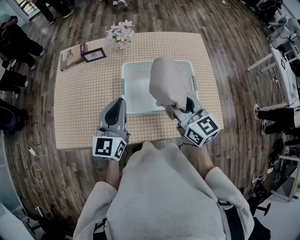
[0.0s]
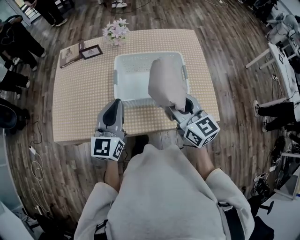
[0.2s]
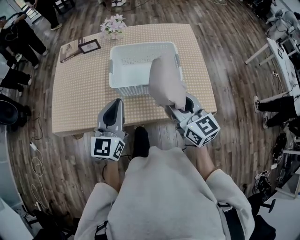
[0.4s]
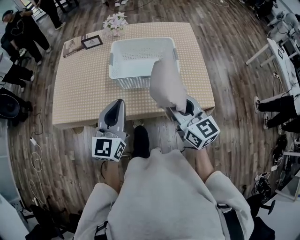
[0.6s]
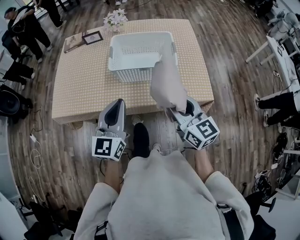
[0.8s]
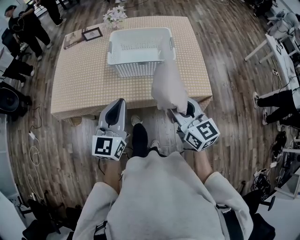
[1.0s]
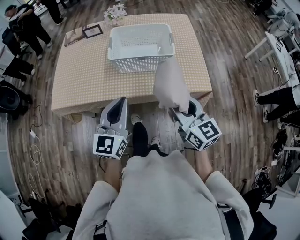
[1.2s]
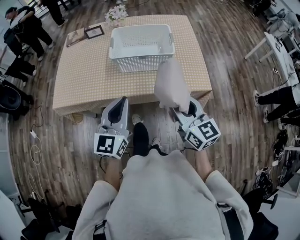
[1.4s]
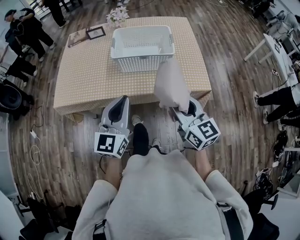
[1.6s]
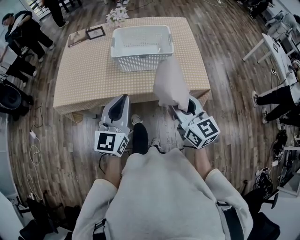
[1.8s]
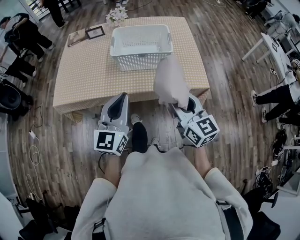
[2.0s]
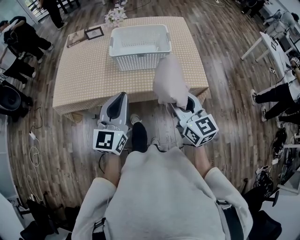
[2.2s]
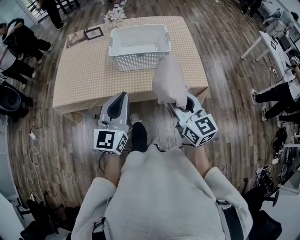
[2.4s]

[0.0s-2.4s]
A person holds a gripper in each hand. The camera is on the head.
0.0s to 1.2s: The two grippers go about 30 cm backward.
1.2s to 2.4s: The grippers stay close to where they were, moving slightly.

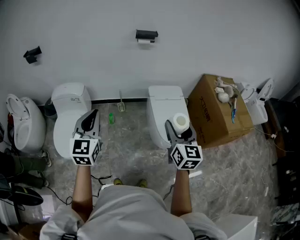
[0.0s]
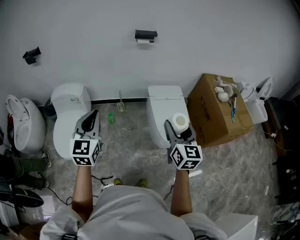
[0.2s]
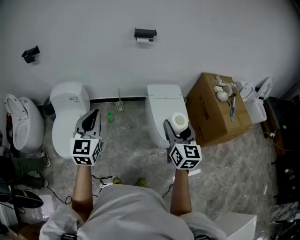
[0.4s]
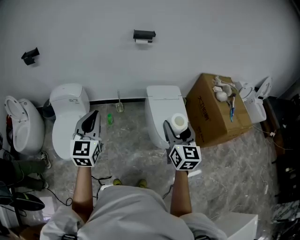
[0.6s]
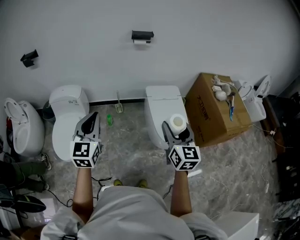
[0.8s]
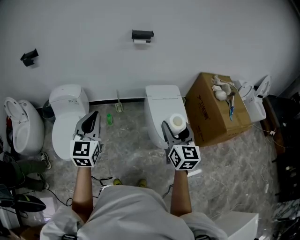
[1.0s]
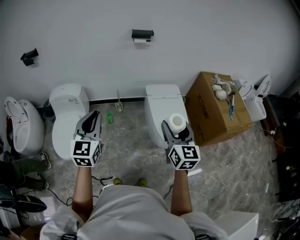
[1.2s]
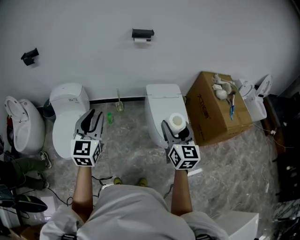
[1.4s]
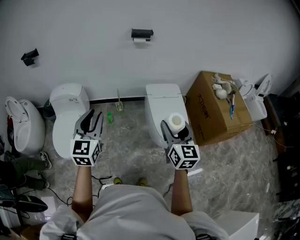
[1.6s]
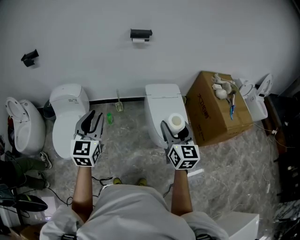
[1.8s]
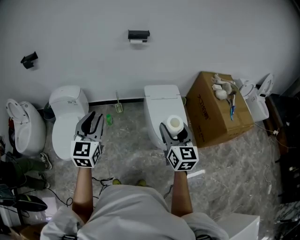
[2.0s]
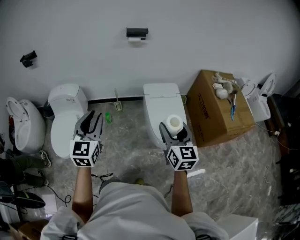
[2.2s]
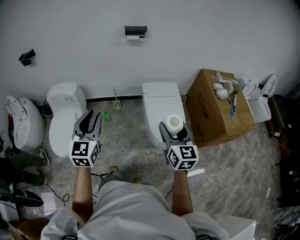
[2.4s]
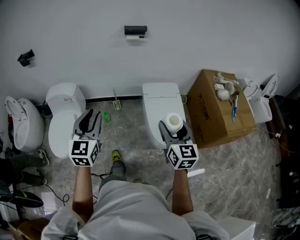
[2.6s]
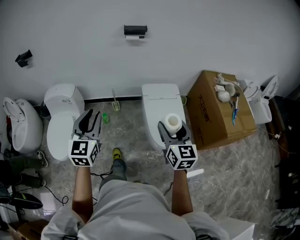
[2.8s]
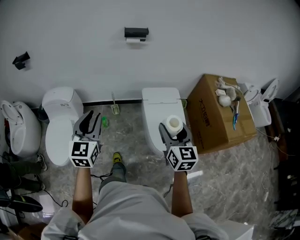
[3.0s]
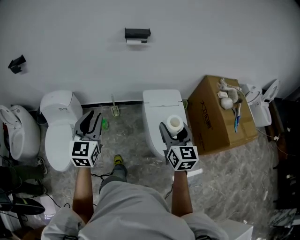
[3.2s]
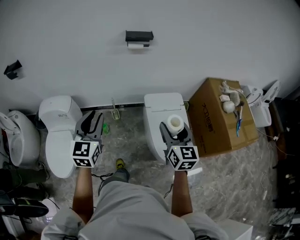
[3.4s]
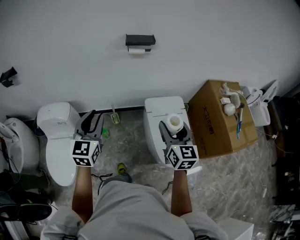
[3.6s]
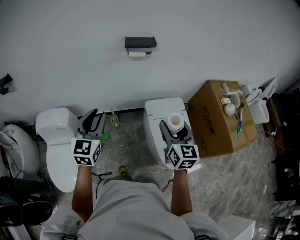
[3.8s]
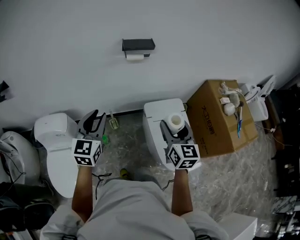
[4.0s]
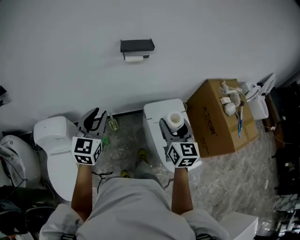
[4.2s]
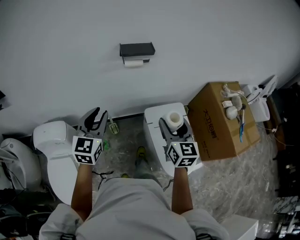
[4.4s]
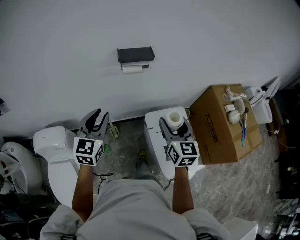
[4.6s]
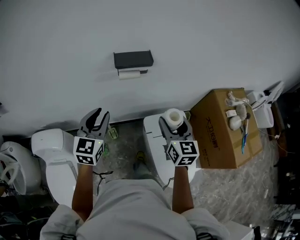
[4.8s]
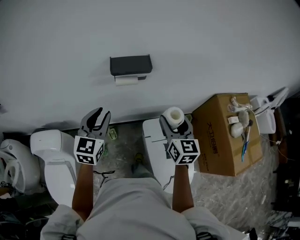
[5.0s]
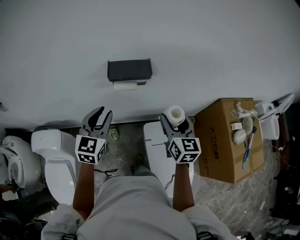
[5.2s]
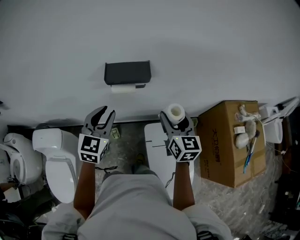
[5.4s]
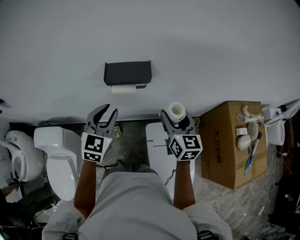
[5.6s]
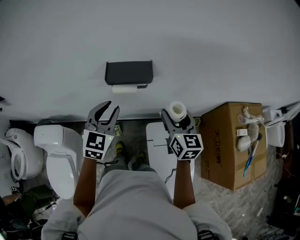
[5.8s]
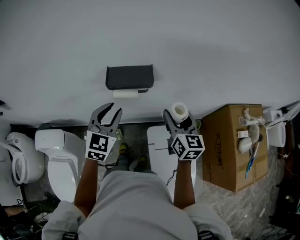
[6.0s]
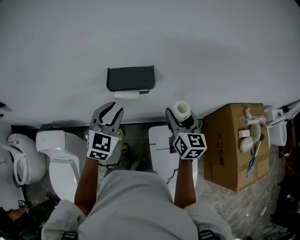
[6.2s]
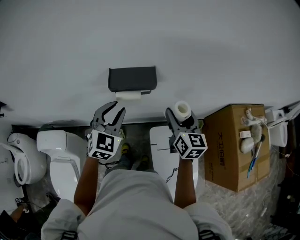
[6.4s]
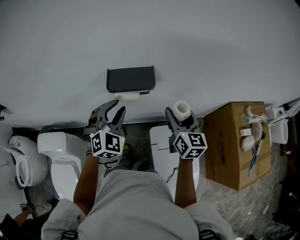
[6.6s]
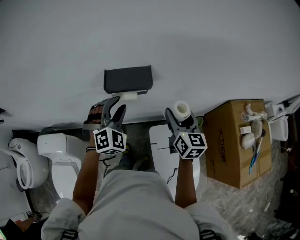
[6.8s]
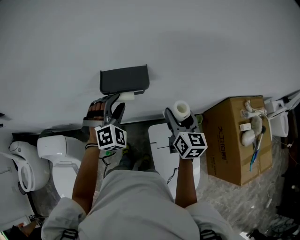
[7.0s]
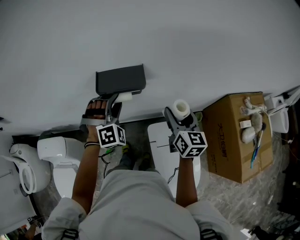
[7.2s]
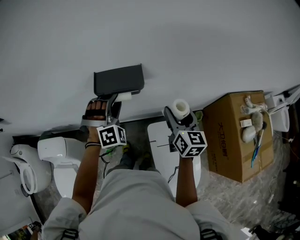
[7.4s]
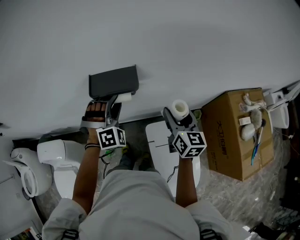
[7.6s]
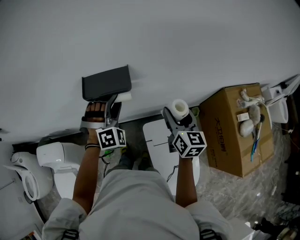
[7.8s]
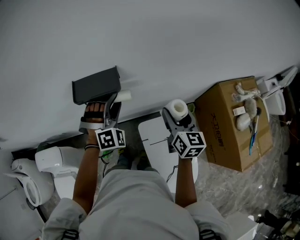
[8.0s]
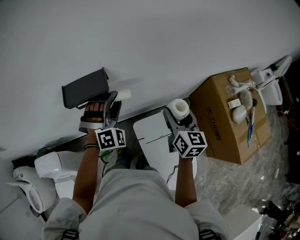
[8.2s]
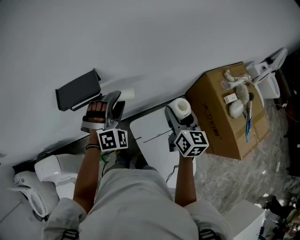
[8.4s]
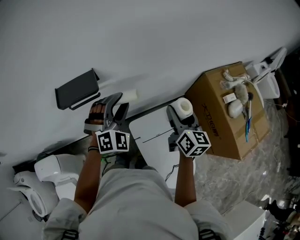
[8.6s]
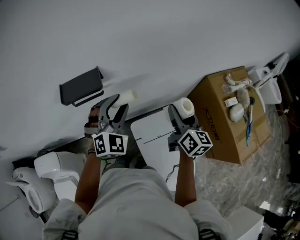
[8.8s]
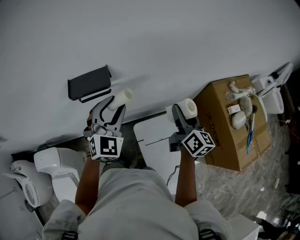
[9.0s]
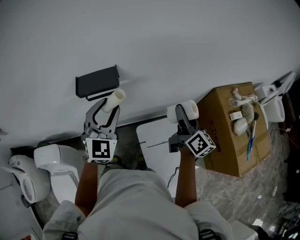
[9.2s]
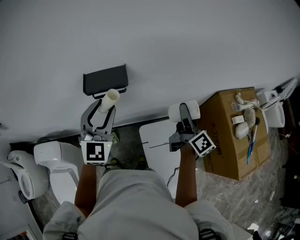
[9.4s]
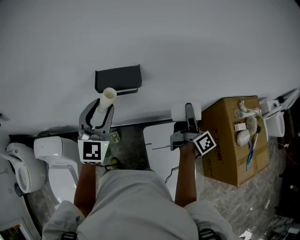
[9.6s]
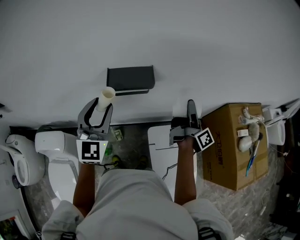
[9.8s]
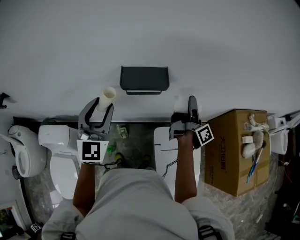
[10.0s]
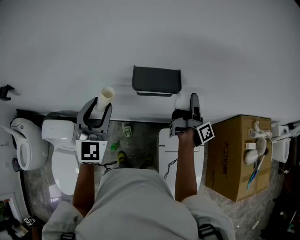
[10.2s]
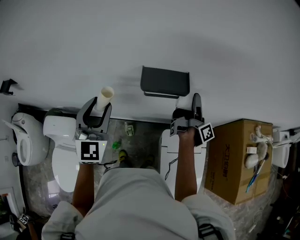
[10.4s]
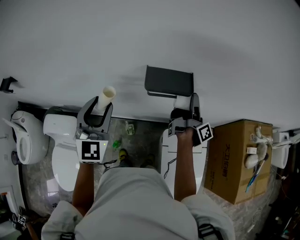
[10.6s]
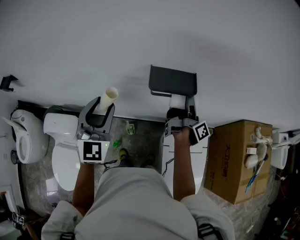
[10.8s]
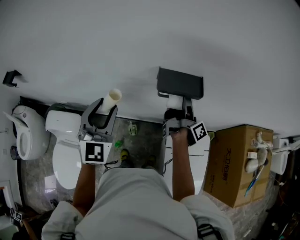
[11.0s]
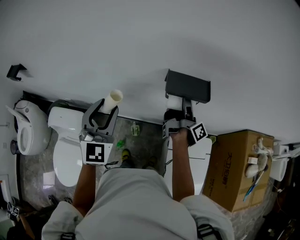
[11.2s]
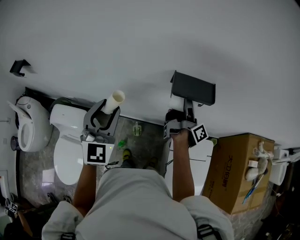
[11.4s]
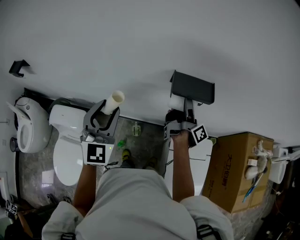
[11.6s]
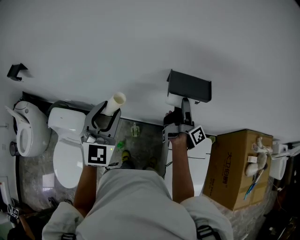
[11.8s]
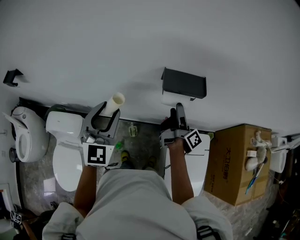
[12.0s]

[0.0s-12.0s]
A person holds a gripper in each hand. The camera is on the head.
0.0s to 1.6s: The left gripper opens up.
1.6s to 3.0s: The right gripper heads forward, to the right and downward, covering about 15 cm. The left gripper goes about 15 cm forward and to the right.
3.0s to 4.4s: Both grippers move forward, some 35 cm.
4.4s to 6.0s: The left gripper goes approximately 25 cm forward and to the right. Meanwhile the right gripper is displaced forward by approximately 30 cm.
6.0s to 7.6s: The right gripper ends up some 5 cm from where it was, while the left gripper heads forward and to the right, covering about 10 cm, and rolls clockwise, seen from behind, by approximately 60 degrees.
7.6s to 9.0s: The right gripper goes about 15 cm to the right, and changes its angle by approximately 20 degrees. Meanwhile the left gripper travels to the right and upward by approximately 15 cm, and changes its angle by about 40 degrees.
9.0s to 10.4s: The left gripper is displaced to the left by roughly 30 cm, and changes its angle by some 40 degrees. Meanwhile the right gripper shifts about 25 cm to the left and forward, and twists roughly 60 degrees clockwise, seen from behind.
10.4s to 12.0s: The right gripper is displaced to the left and backward by about 15 cm; the left gripper changes place by approximately 5 cm.

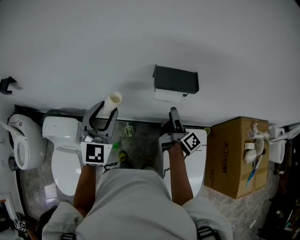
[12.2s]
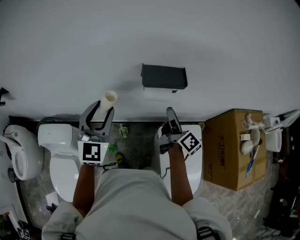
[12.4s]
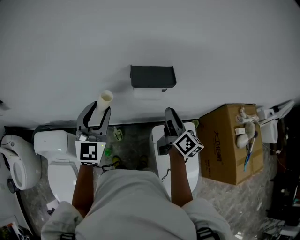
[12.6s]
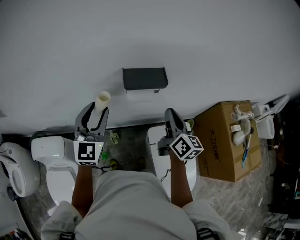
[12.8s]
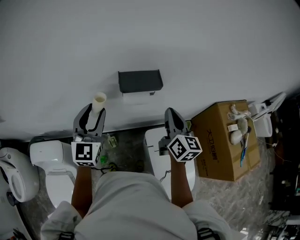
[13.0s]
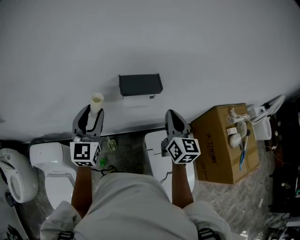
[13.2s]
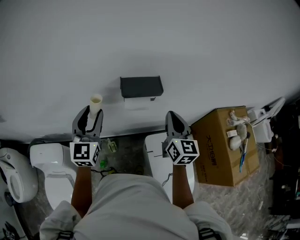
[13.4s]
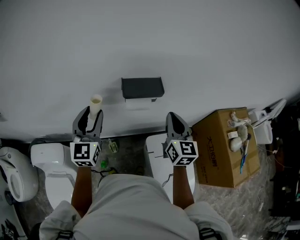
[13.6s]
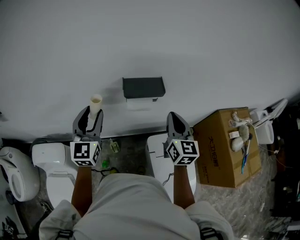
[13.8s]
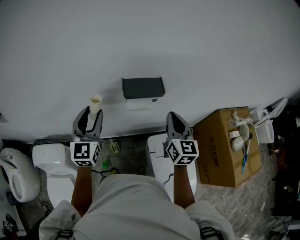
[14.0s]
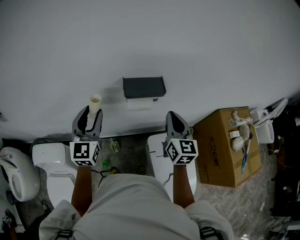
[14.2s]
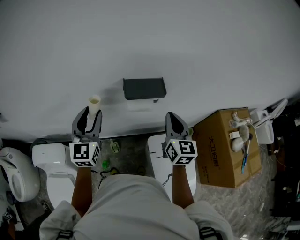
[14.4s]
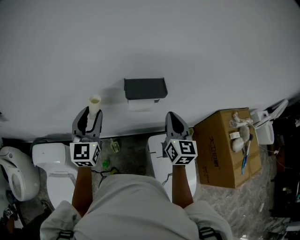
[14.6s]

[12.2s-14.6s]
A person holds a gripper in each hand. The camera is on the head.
12.2s to 13.4s: The left gripper changes place by roughly 5 cm, and turns by about 20 degrees. Meanwhile the right gripper heads upward and to the right, covering about 15 cm, rolls counterclockwise, seen from behind, by approximately 70 degrees, and closes.
13.4s to 14.6s: The two grippers keep their place.

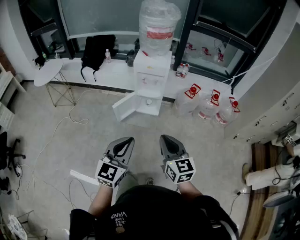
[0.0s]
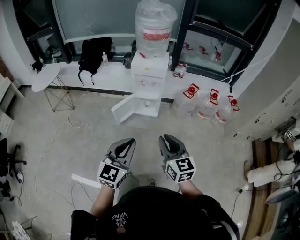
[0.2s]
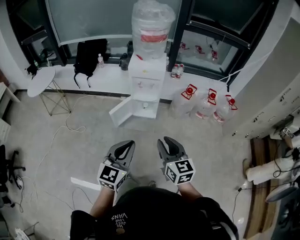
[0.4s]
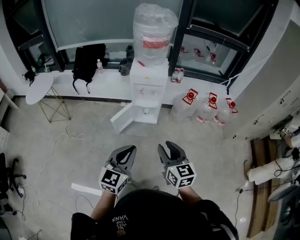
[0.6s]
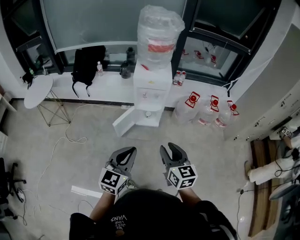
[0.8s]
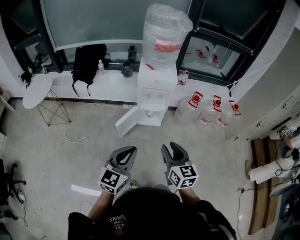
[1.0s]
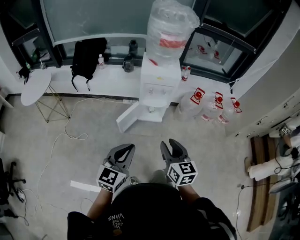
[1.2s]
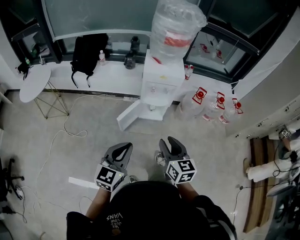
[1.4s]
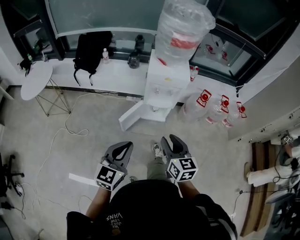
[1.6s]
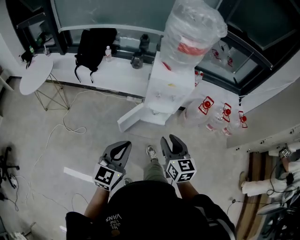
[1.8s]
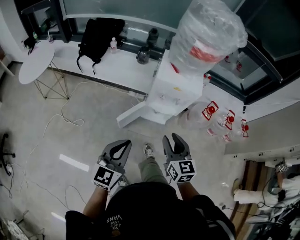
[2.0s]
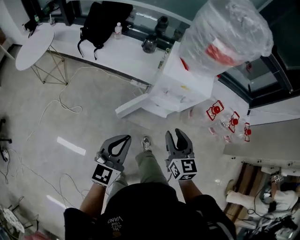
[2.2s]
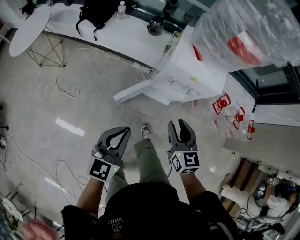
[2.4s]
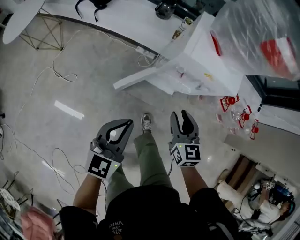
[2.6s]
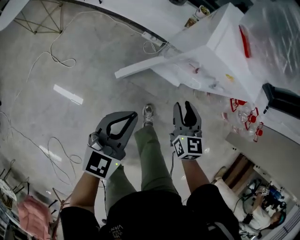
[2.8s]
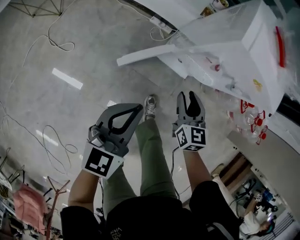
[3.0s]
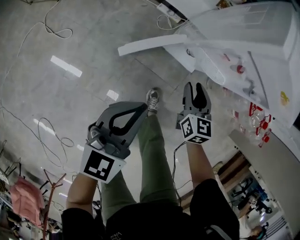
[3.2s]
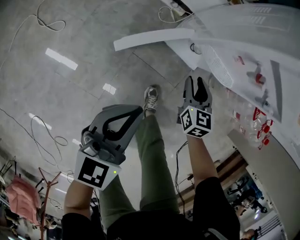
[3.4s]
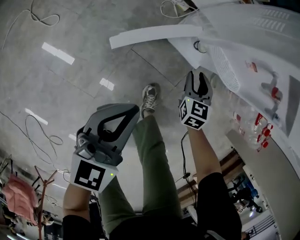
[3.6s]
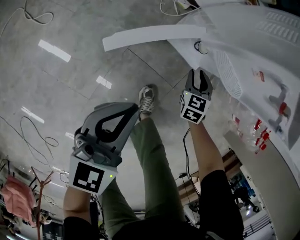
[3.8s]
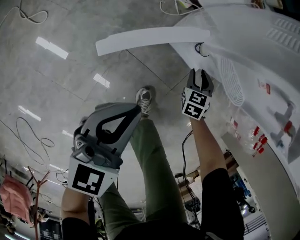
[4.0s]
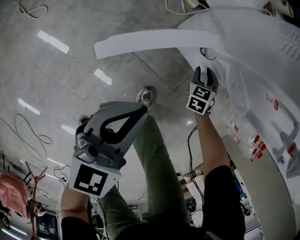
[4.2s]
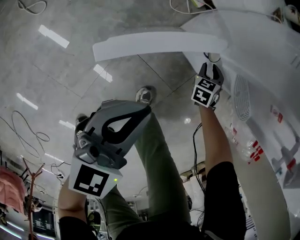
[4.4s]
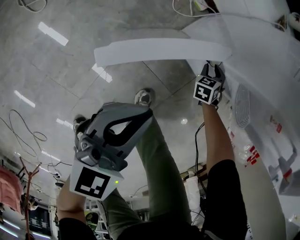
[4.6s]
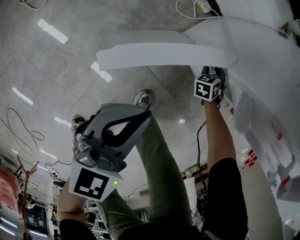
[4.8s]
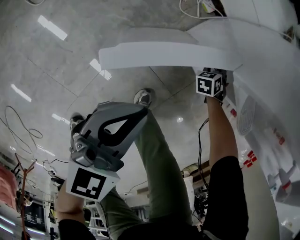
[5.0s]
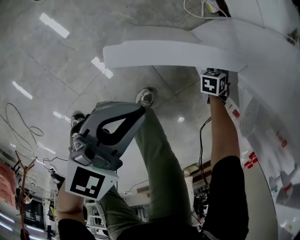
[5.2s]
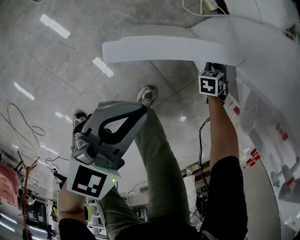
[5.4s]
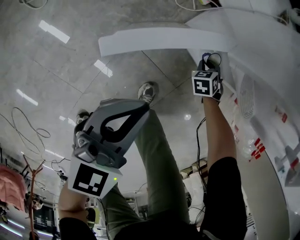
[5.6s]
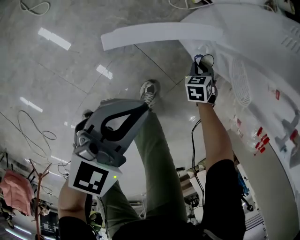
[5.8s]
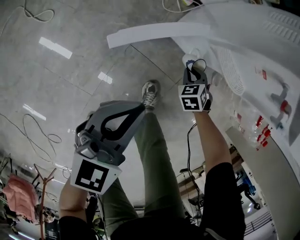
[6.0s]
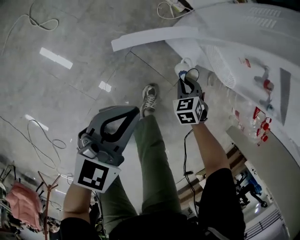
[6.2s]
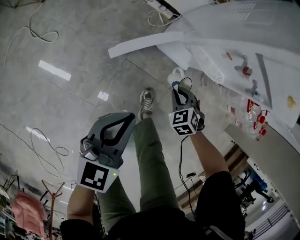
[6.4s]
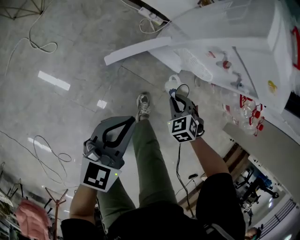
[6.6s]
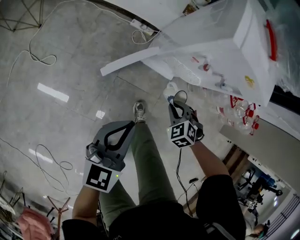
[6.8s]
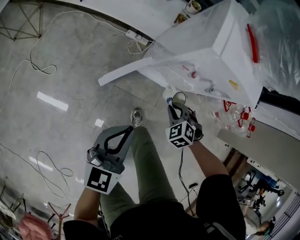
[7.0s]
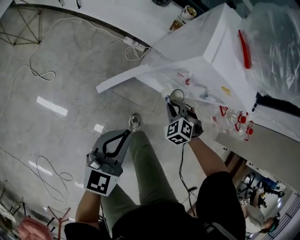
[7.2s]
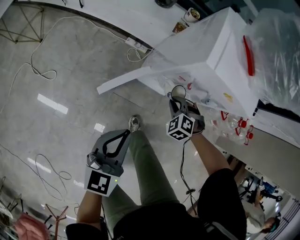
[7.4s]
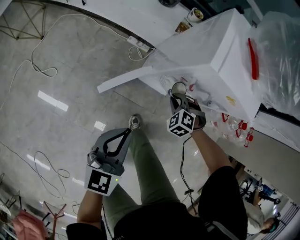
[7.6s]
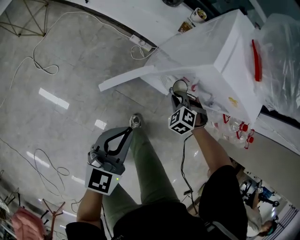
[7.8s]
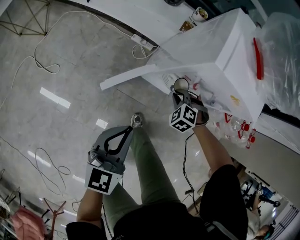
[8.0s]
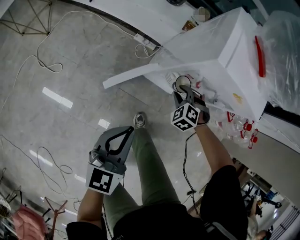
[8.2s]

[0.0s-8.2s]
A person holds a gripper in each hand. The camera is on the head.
0.0s to 1.6s: The left gripper heads to the left and forward, covering roughly 30 cm. Meanwhile the right gripper is displaced forward and to the left by some 30 cm, and opens up.
1.6s to 3.2s: Both grippers travel together downward and forward, roughly 50 cm. The right gripper rotates approximately 20 degrees.
3.2s to 5.0s: The right gripper heads downward and forward, covering approximately 50 cm, and turns by roughly 70 degrees, while the left gripper heads downward, covering some 25 cm.
5.0s to 6.6s: The right gripper goes roughly 40 cm upward and backward, and turns by some 20 degrees, while the left gripper moves upward, some 25 cm.
6.6s to 8.2s: The left gripper shifts approximately 5 cm upward. Meanwhile the right gripper goes roughly 15 cm forward and upward.
